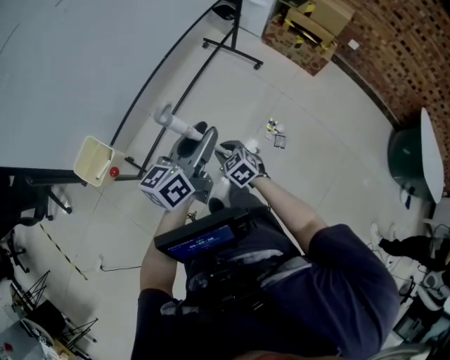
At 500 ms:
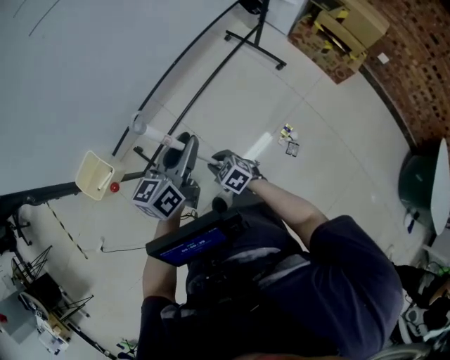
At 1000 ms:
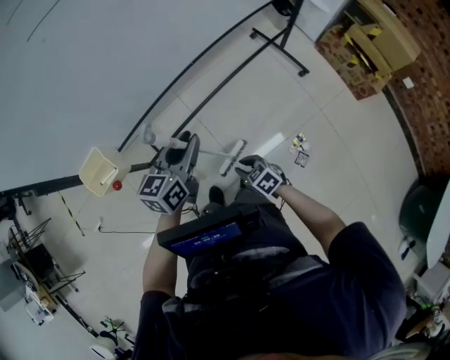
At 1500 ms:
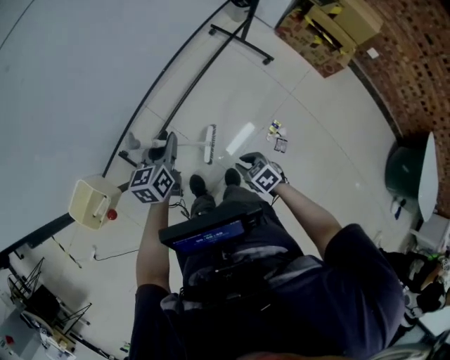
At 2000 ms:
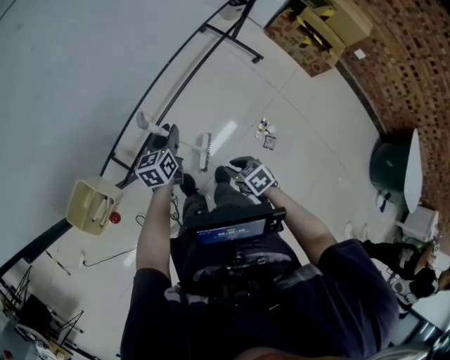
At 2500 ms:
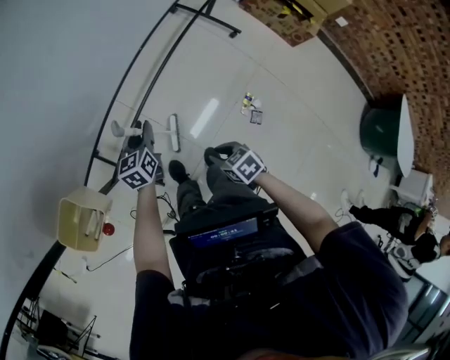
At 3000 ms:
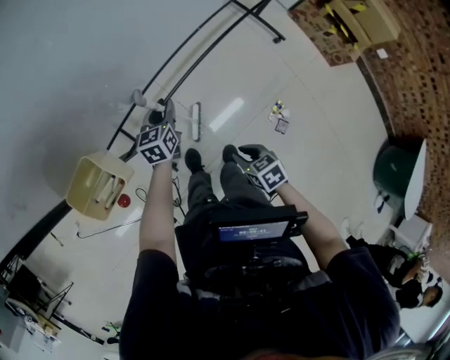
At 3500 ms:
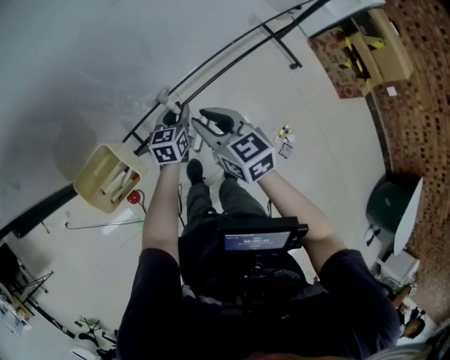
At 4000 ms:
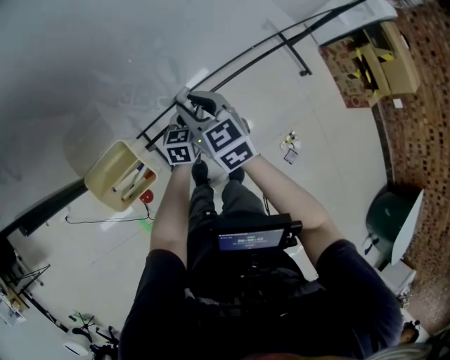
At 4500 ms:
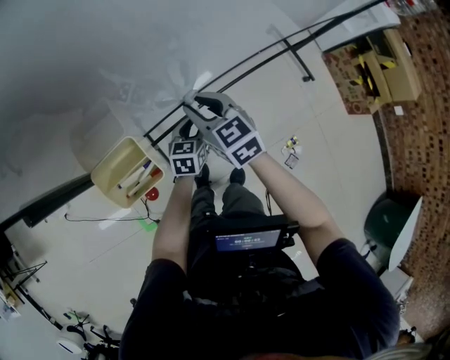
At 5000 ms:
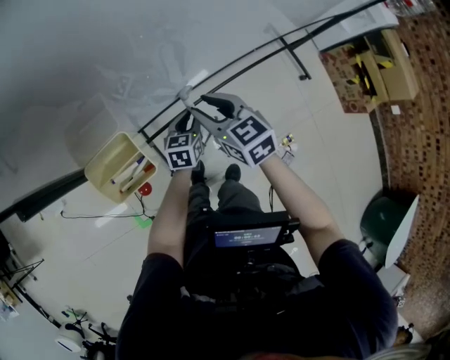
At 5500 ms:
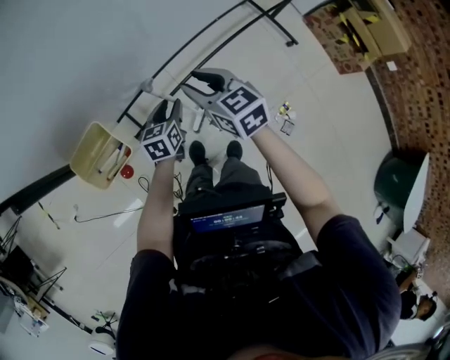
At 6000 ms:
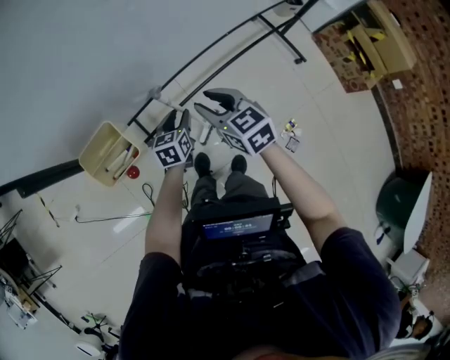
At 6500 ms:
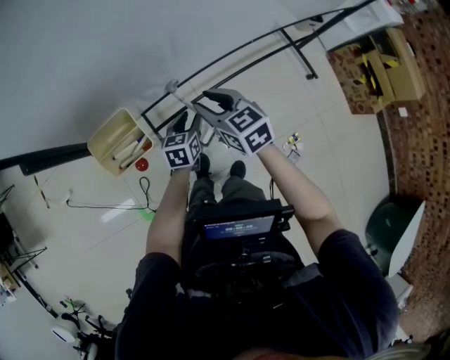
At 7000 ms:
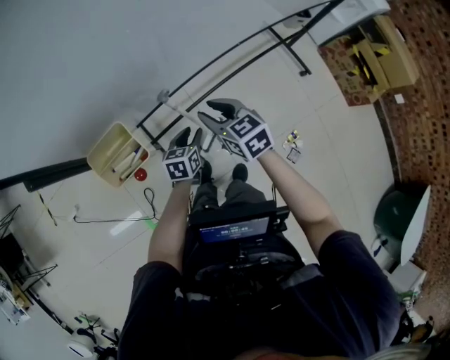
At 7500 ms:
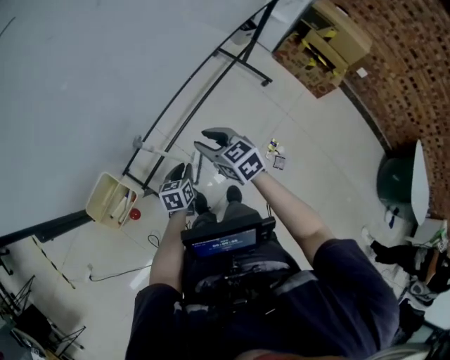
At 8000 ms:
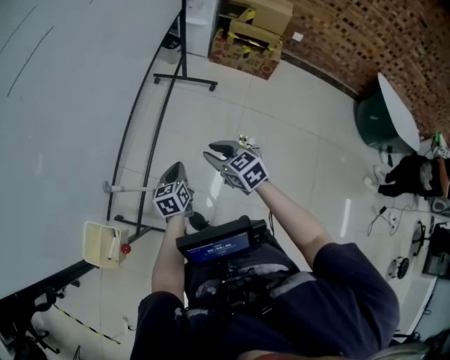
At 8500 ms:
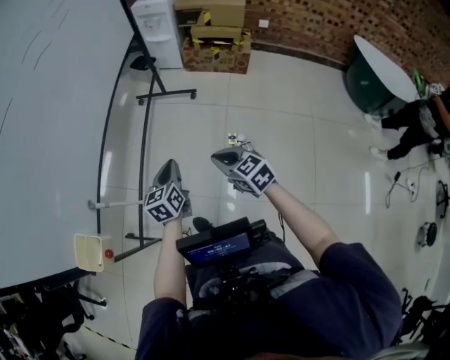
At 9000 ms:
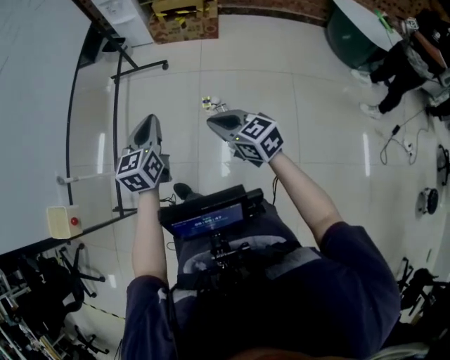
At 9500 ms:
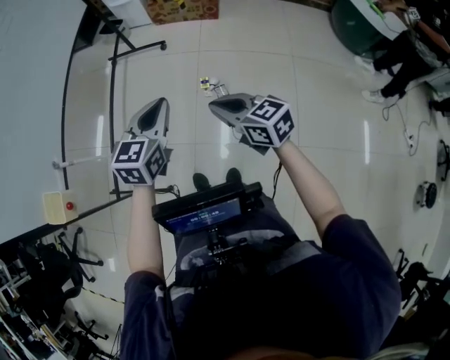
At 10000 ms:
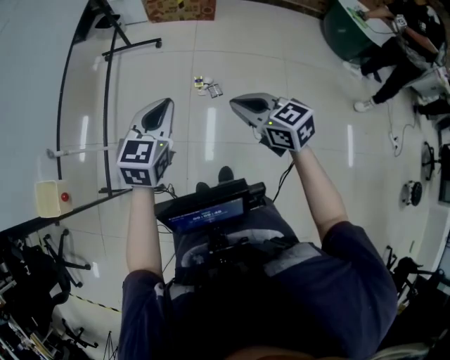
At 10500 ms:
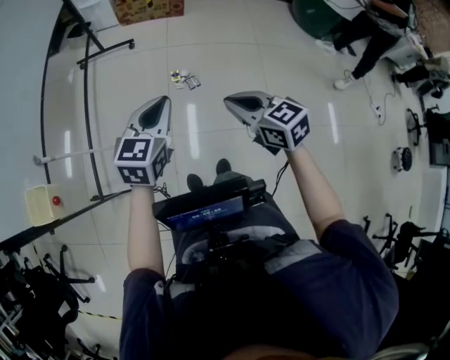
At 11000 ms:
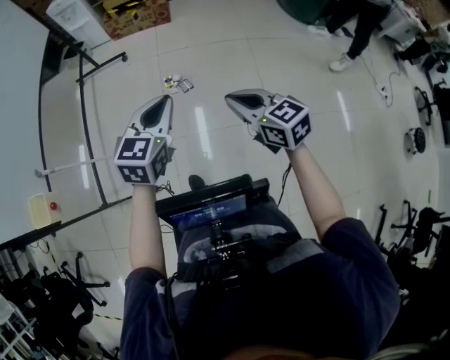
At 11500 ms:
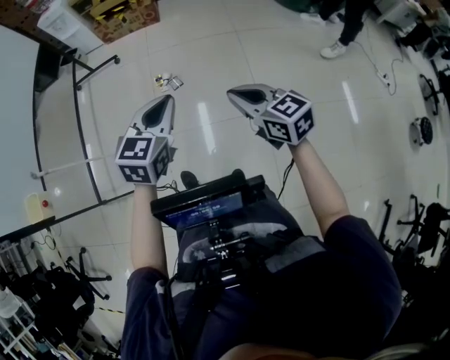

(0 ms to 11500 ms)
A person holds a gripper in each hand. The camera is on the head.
0 ms - 2000 ms: The right gripper goes about 5 cm downward, and swivels roughly 20 degrees. The left gripper shifts roughly 25 cm downward, and rotates approximately 30 degrees.
2000 ms - 4000 ms: The left gripper is displaced to the left, downward and forward by approximately 10 cm, while the right gripper heads forward, to the left and upward, covering approximately 40 cm, and changes its angle by some 40 degrees.
4000 ms - 6000 ms: The left gripper shifts about 5 cm backward. The right gripper moves to the right and backward, some 10 cm.
6000 ms - 7500 ms: The left gripper travels backward by some 5 cm. The right gripper is displaced to the right by about 5 cm.
7500 ms - 9500 ms: The two grippers travel together, about 50 cm. The right gripper swivels some 40 degrees, and closes up; the left gripper changes its angle by some 60 degrees.
9500 ms - 11500 ms: The two grippers go about 35 cm backward and to the right. The right gripper turns by some 20 degrees.

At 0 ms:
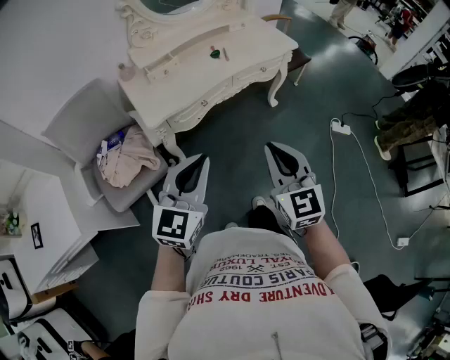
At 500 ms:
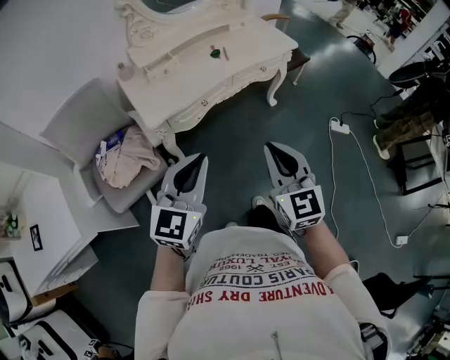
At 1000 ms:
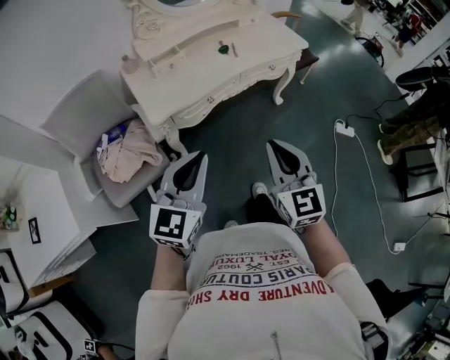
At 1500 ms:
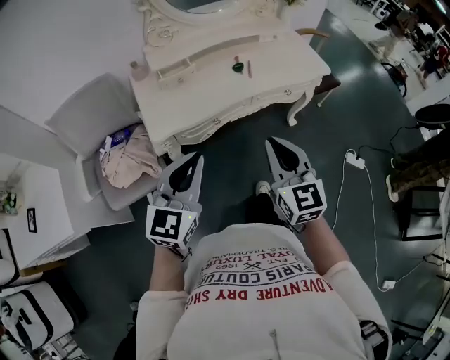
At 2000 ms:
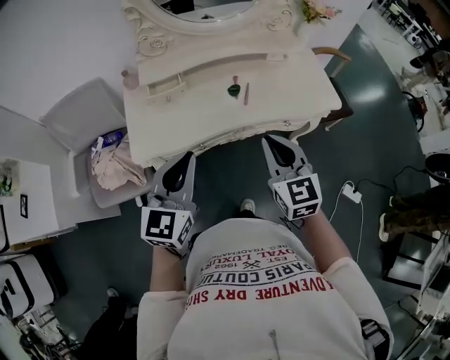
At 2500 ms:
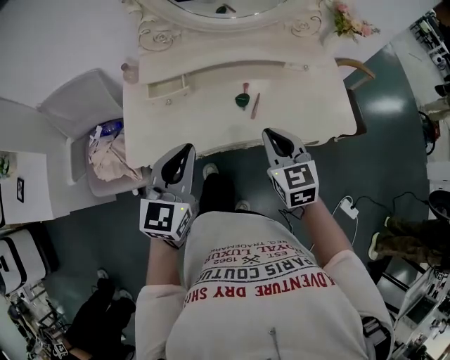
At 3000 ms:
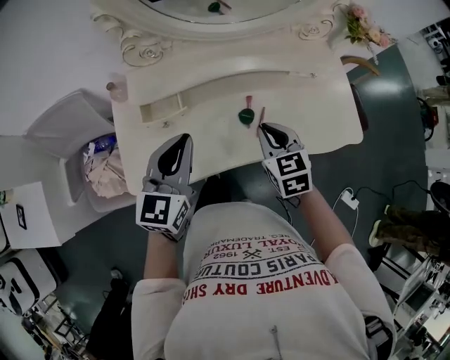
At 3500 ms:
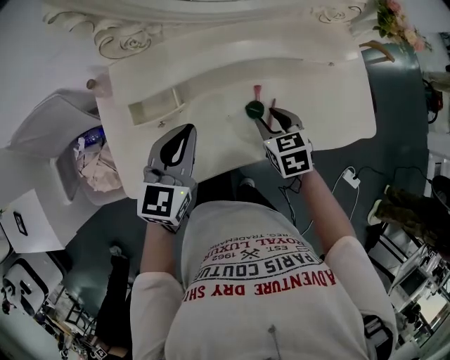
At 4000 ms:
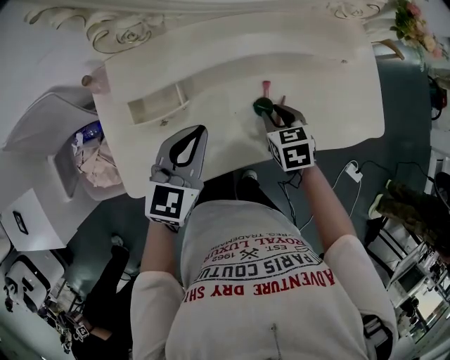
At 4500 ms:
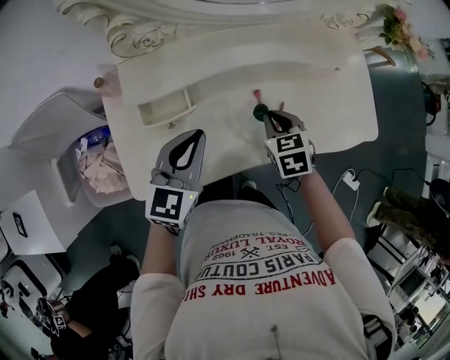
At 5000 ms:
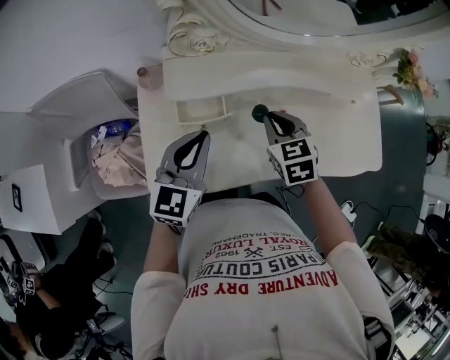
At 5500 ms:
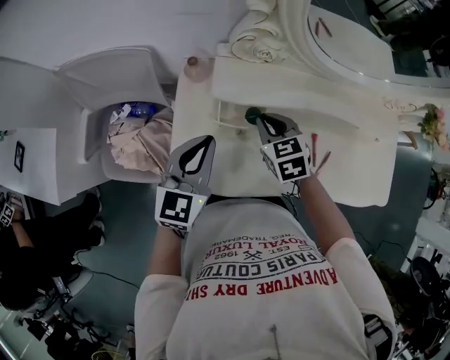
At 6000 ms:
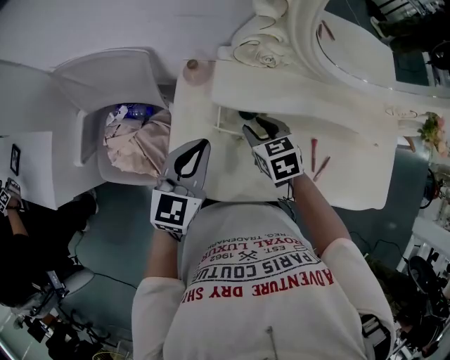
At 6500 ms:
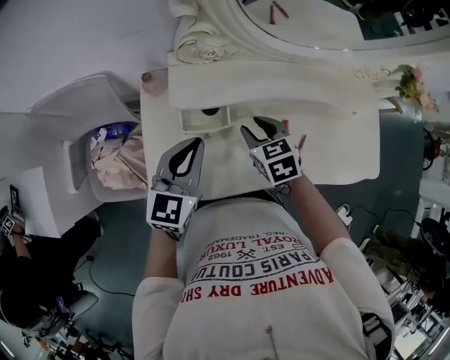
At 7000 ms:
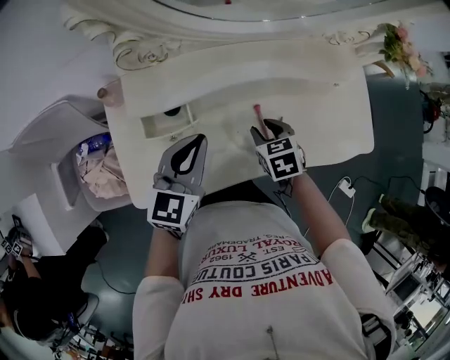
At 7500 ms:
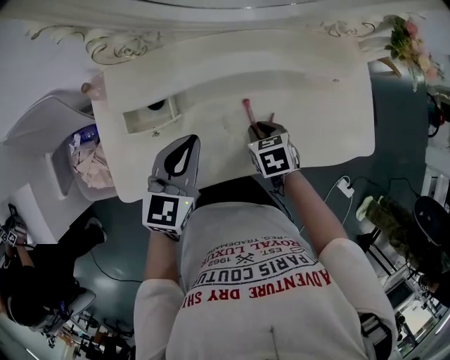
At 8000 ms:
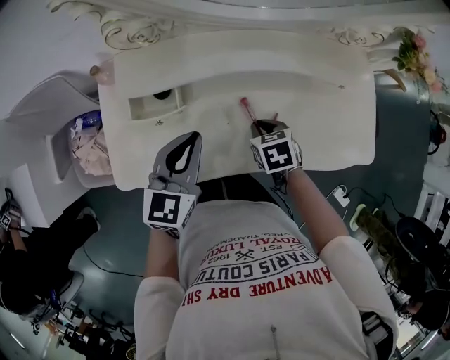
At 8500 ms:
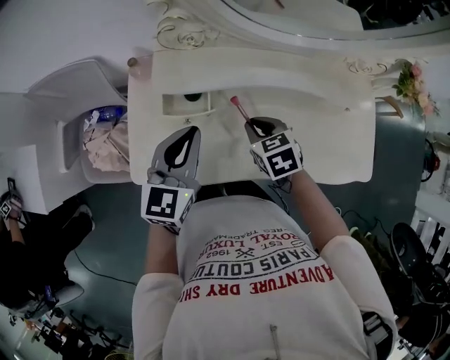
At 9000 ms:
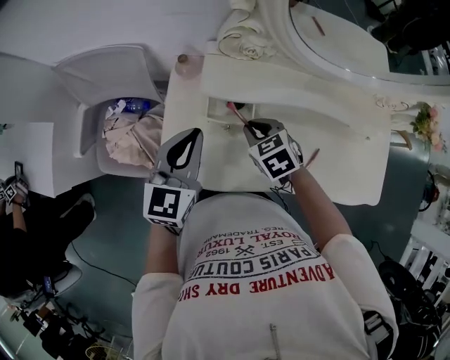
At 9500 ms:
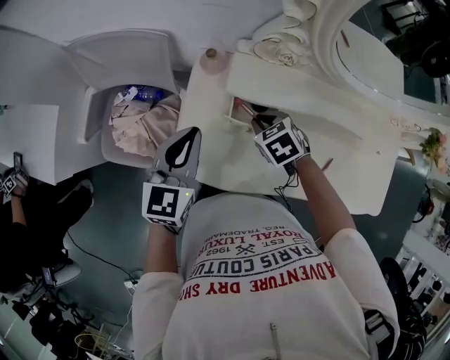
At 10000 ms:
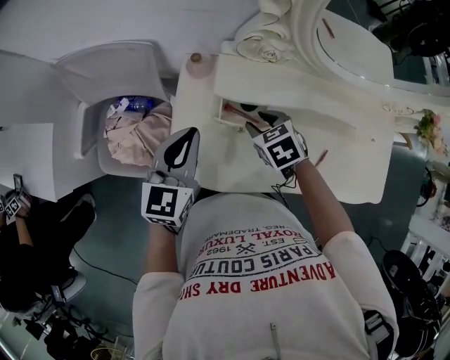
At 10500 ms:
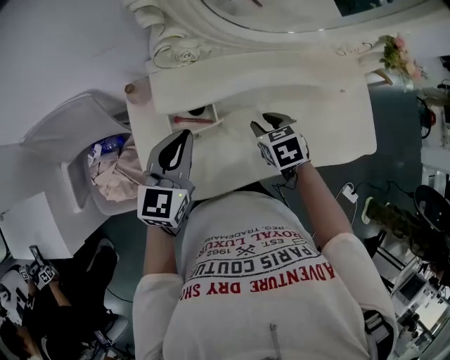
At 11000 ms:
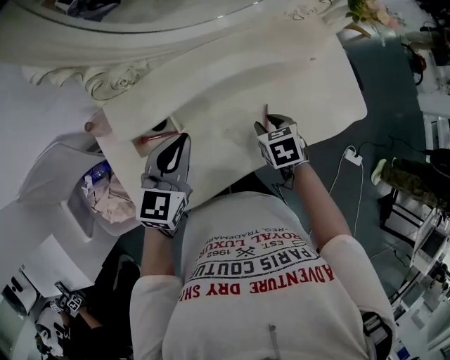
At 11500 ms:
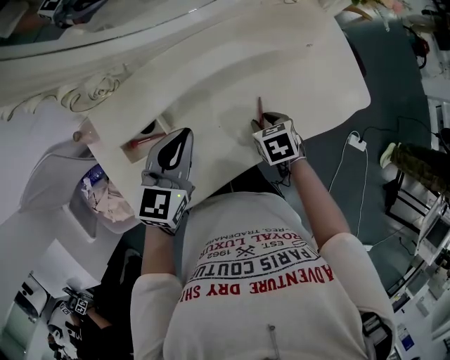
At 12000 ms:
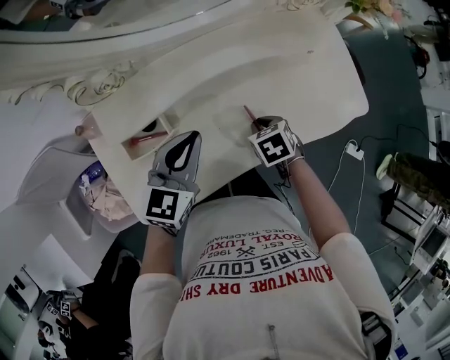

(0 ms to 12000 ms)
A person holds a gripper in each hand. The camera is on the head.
0 ms - 2000 ms: Both grippers move forward, about 35 cm. The left gripper swivels about 30 degrees, while the right gripper turns by roughly 20 degrees.
2000 ms - 4000 ms: The grippers both shift forward and downward by about 35 cm. The right gripper angles its fingers downward, by about 40 degrees, and opens its fingers.
4000 ms - 6000 ms: The right gripper shifts by roughly 30 cm, and rotates approximately 30 degrees. The left gripper ends up about 20 cm from where it was, and changes its angle by about 20 degrees.
6000 ms - 8000 ms: Both grippers travel together to the right, some 25 cm. The right gripper swivels about 20 degrees, and closes its fingers.
8000 ms - 10000 ms: The left gripper is displaced to the left by roughly 25 cm. Meanwhile the right gripper goes some 25 cm to the left and forward, rotates roughly 30 degrees, and opens its fingers.
10000 ms - 12000 ms: The left gripper changes place by about 25 cm, and rotates some 40 degrees; the right gripper moves about 30 cm, changes its angle by about 40 degrees, and closes its fingers.

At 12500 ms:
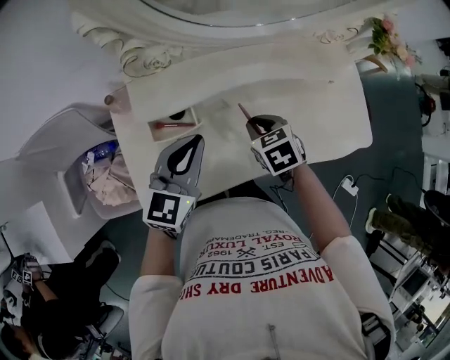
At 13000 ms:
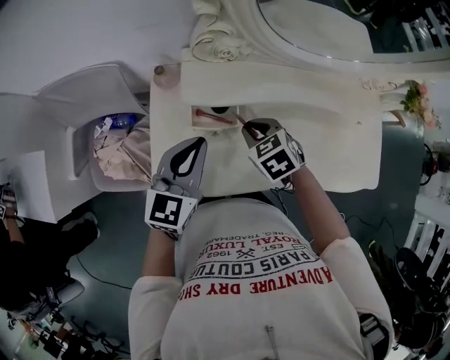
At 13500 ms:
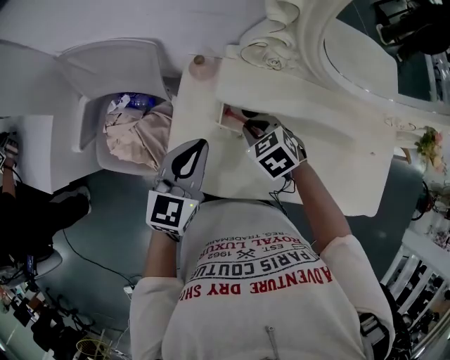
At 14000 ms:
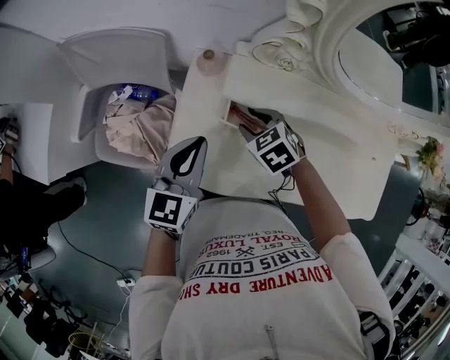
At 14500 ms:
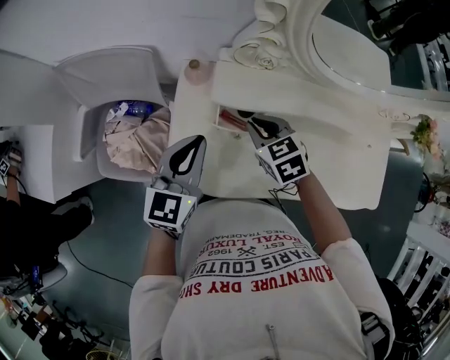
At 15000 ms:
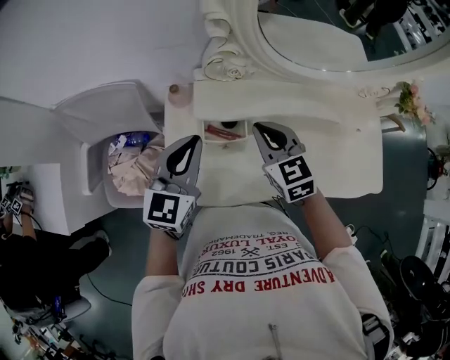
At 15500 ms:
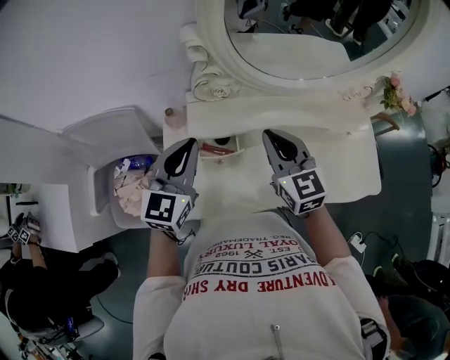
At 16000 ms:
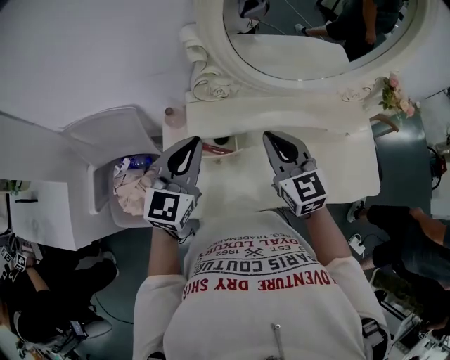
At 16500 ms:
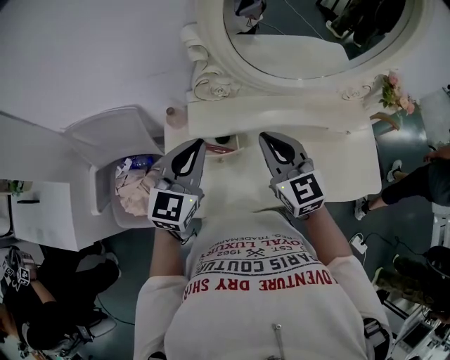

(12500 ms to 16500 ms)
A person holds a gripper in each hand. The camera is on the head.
12500 ms - 14500 ms: The right gripper moves roughly 20 cm, turns by some 30 degrees, and opens, then closes again; the left gripper changes place by some 20 cm, and turns by about 20 degrees.
14500 ms - 16500 ms: The right gripper is displaced upward and to the right by some 20 cm, and tips its fingers upward by roughly 30 degrees; the left gripper heads upward and to the right, covering some 10 cm.
